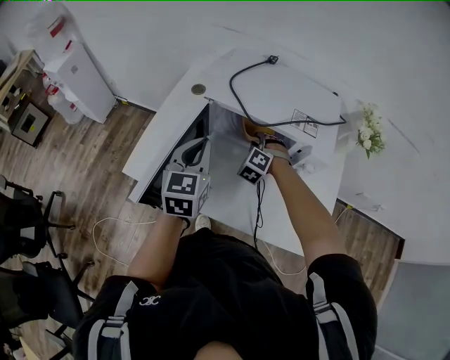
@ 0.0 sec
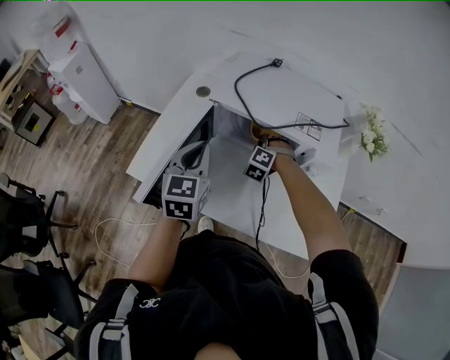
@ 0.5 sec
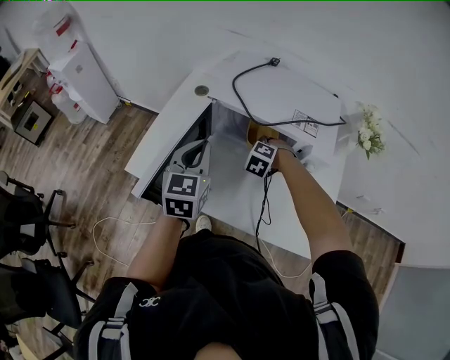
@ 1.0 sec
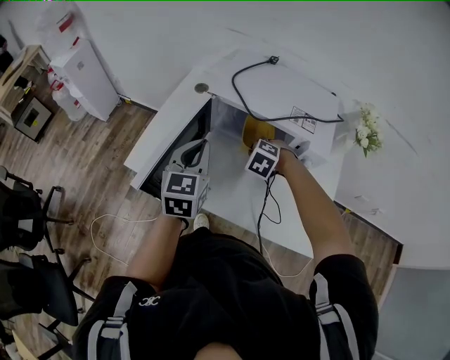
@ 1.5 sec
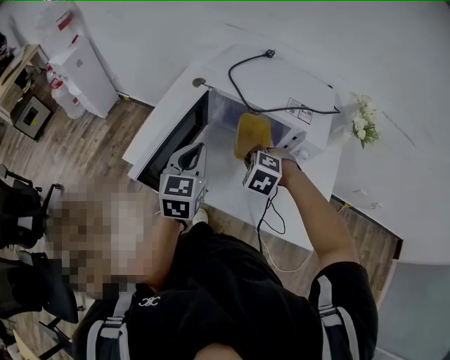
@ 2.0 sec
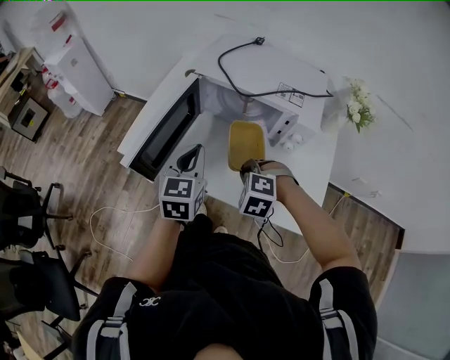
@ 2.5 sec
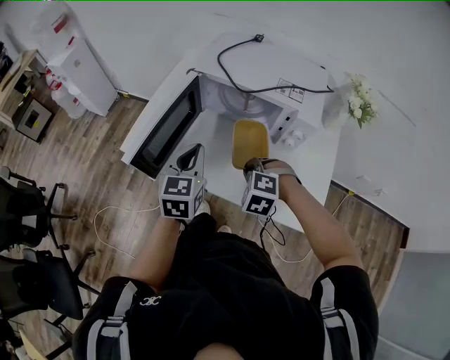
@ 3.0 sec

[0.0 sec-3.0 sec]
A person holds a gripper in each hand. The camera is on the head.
0.0 sec to 1.5 sec: The right gripper travels backward by roughly 10 cm, rotates about 20 degrees, and closes its fingers.
1.5 sec to 3.0 sec: The left gripper is displaced backward by some 10 cm; the right gripper heads backward, covering about 15 cm.

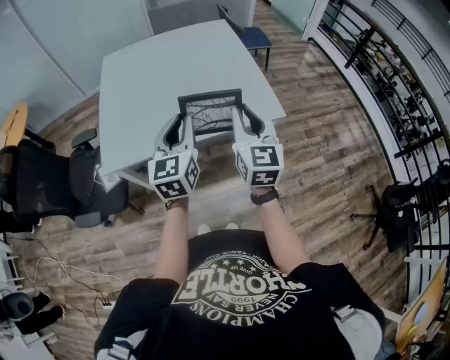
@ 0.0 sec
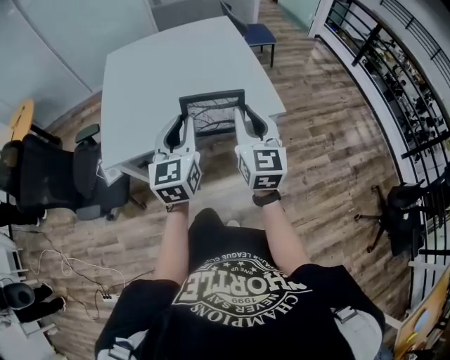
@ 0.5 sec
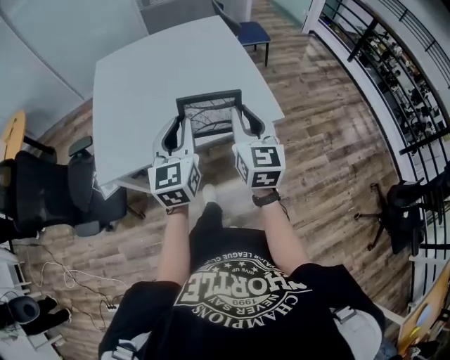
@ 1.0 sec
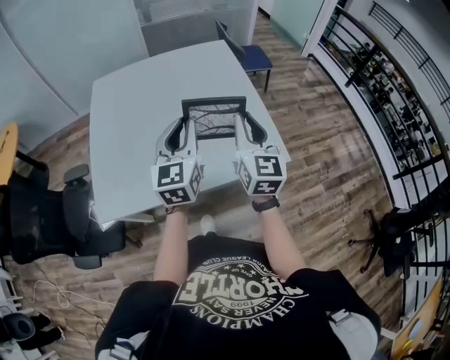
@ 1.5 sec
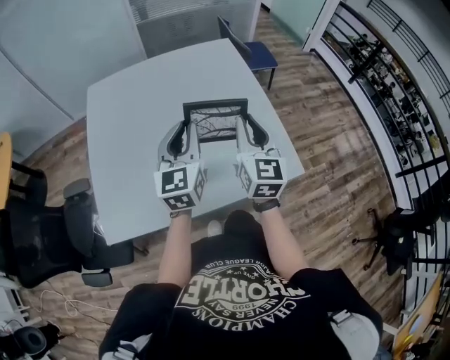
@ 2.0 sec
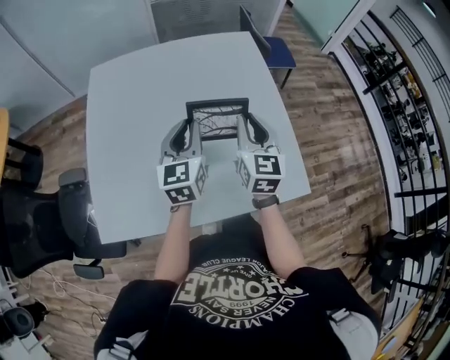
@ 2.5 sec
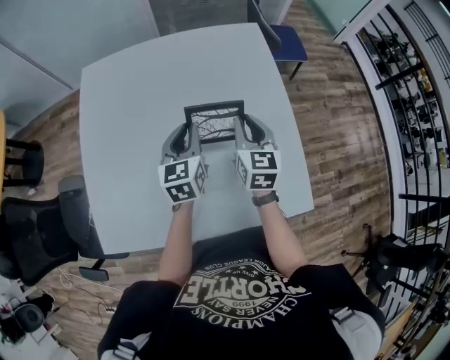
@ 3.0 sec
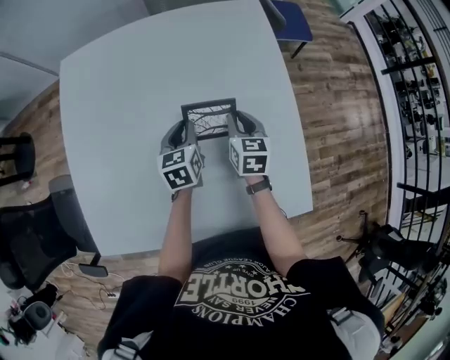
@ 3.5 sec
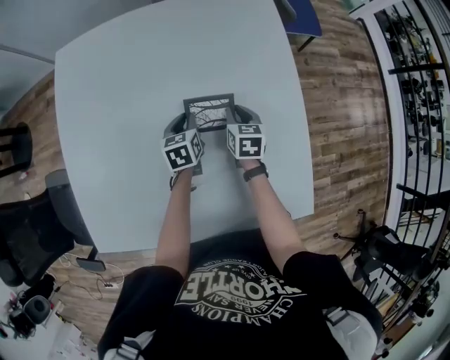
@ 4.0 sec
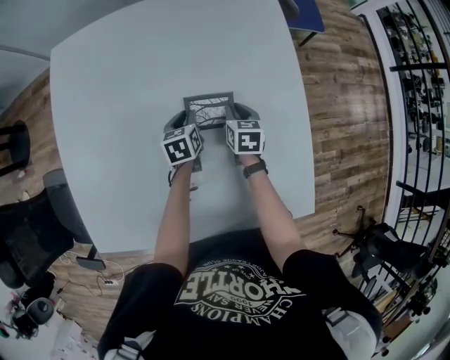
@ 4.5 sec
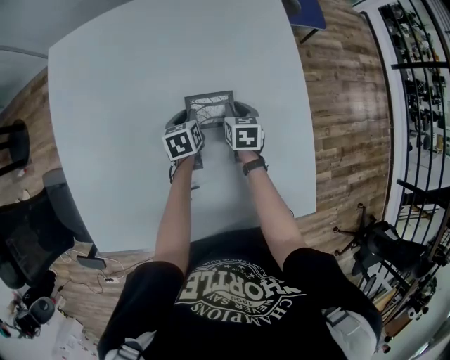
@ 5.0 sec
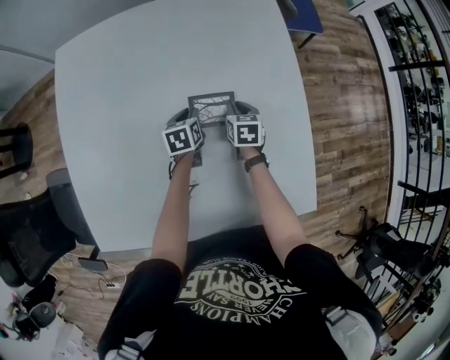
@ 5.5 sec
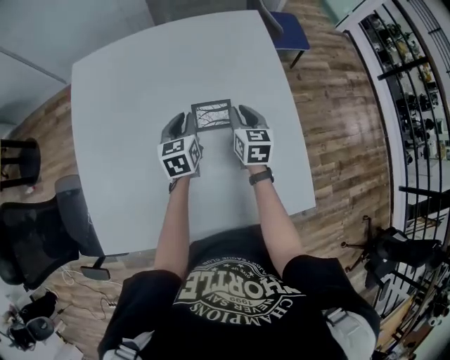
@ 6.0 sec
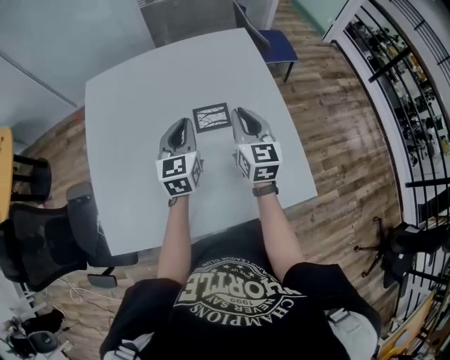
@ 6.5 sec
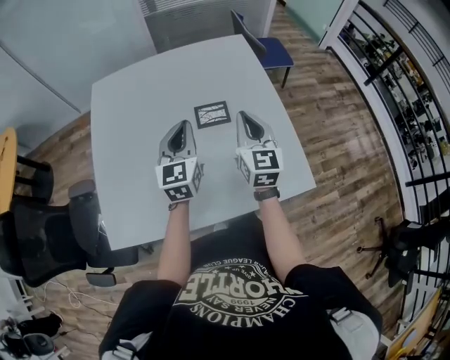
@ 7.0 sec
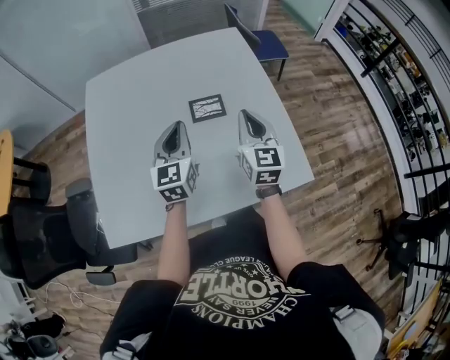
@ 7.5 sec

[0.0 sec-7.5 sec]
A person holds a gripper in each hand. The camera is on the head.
0.0 sec to 2.0 sec: Both grippers move forward, about 35 cm.
2.0 sec to 4.0 sec: The grippers both shift downward and forward by approximately 50 cm. The right gripper angles its fingers downward, by some 40 degrees; the left gripper points its fingers roughly 40 degrees further downward.
4.0 sec to 5.5 sec: The grippers stay close to where they were, moving slightly.
5.5 sec to 7.5 sec: Both grippers travel together upward and backward, roughly 40 cm. The left gripper tips its fingers upward by roughly 40 degrees. Meanwhile the right gripper tips its fingers upward by roughly 40 degrees.

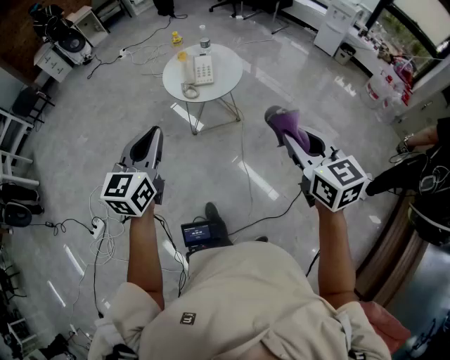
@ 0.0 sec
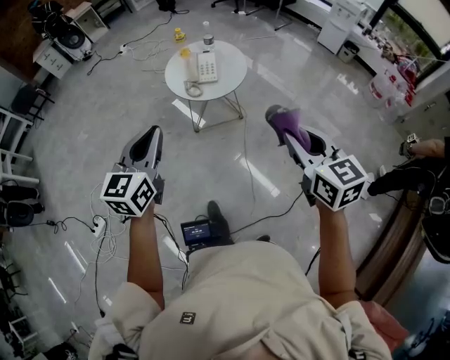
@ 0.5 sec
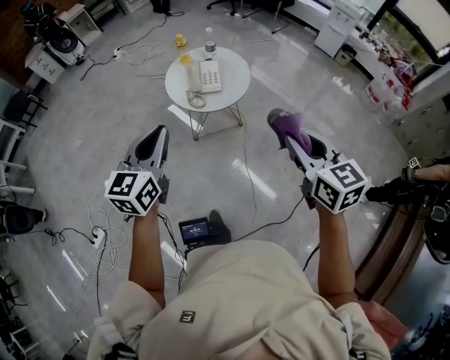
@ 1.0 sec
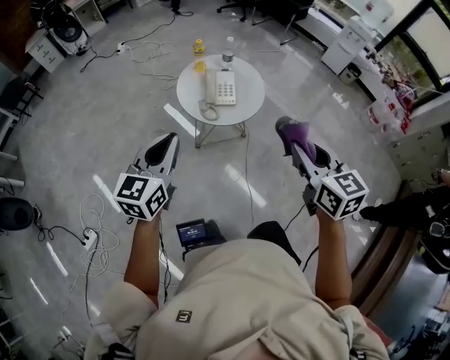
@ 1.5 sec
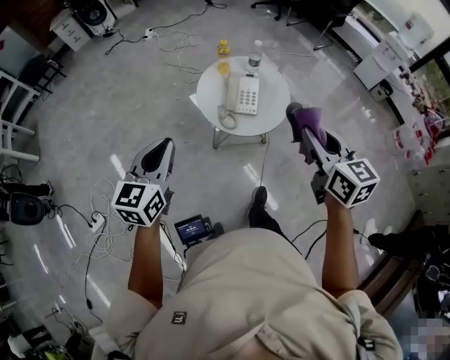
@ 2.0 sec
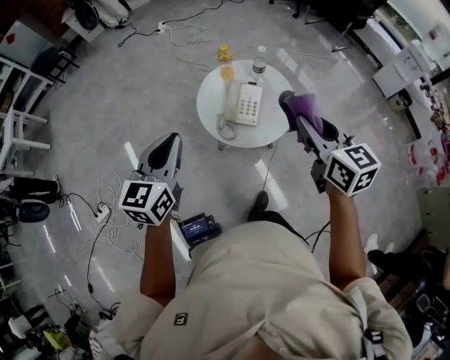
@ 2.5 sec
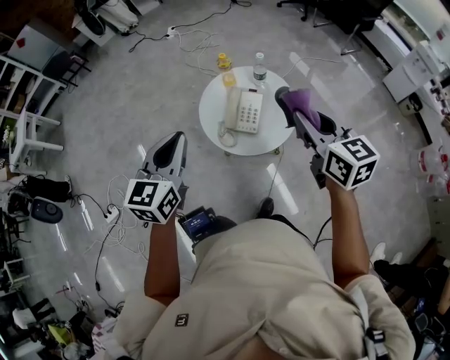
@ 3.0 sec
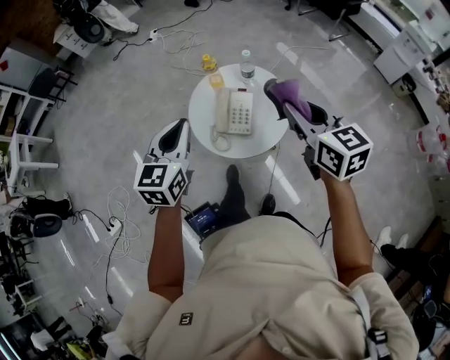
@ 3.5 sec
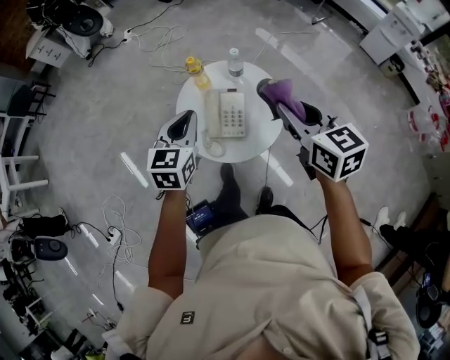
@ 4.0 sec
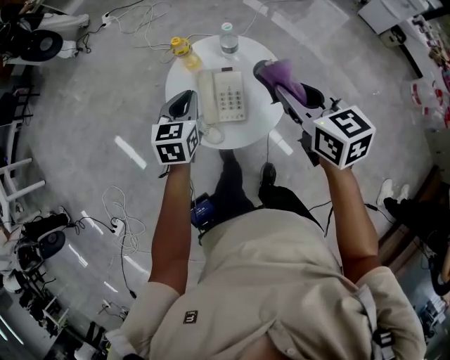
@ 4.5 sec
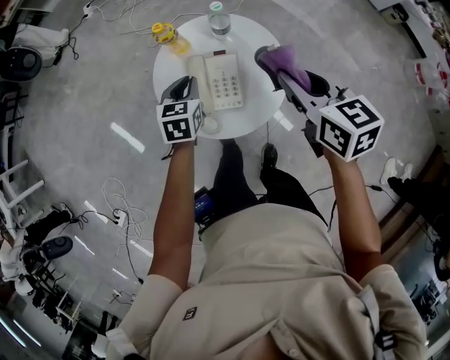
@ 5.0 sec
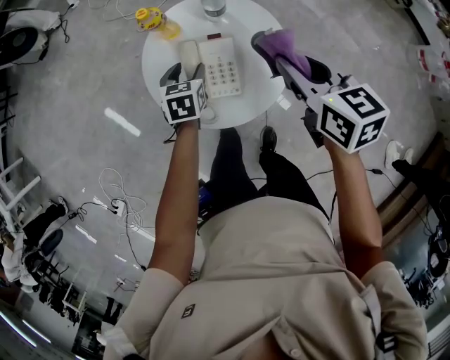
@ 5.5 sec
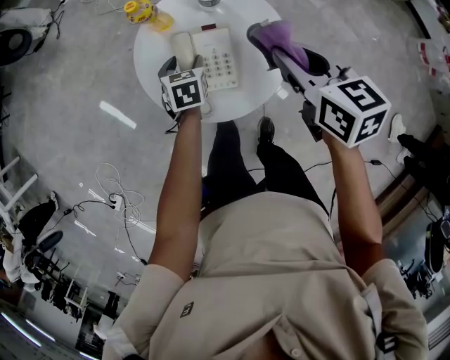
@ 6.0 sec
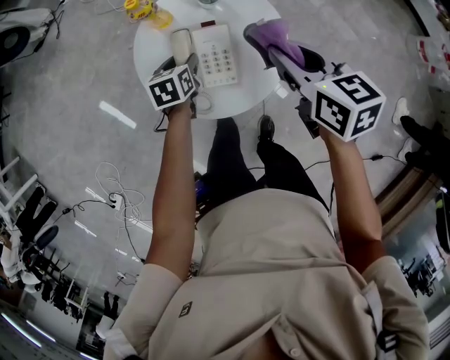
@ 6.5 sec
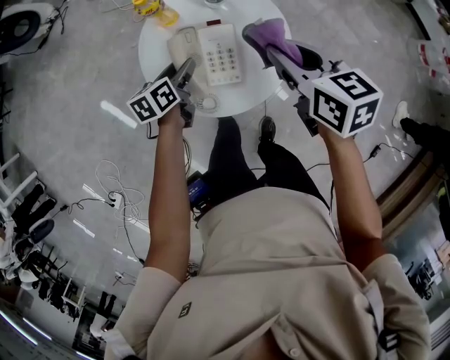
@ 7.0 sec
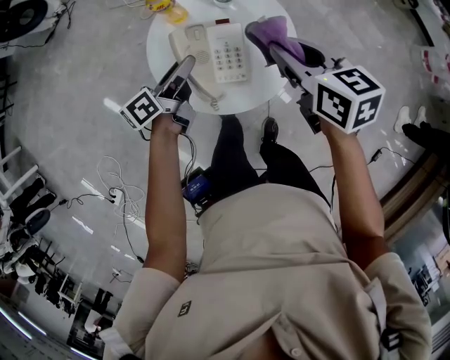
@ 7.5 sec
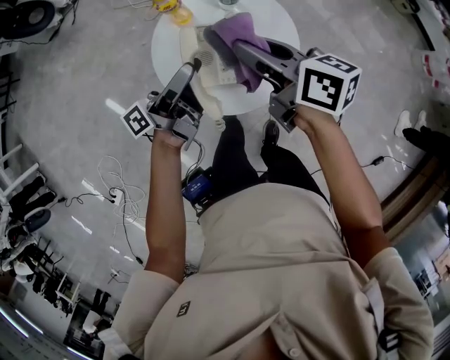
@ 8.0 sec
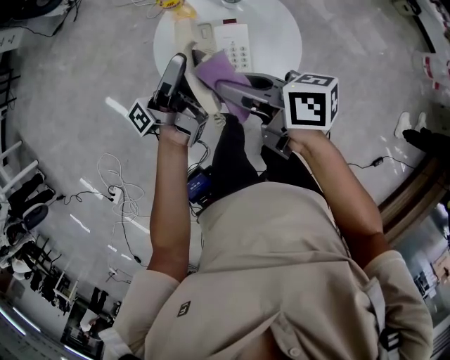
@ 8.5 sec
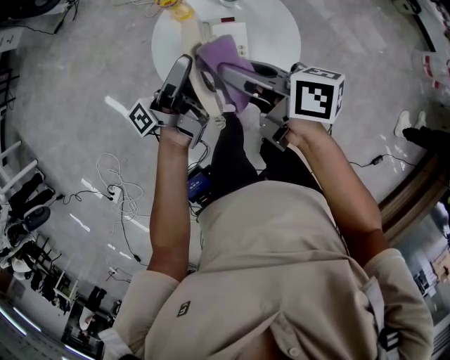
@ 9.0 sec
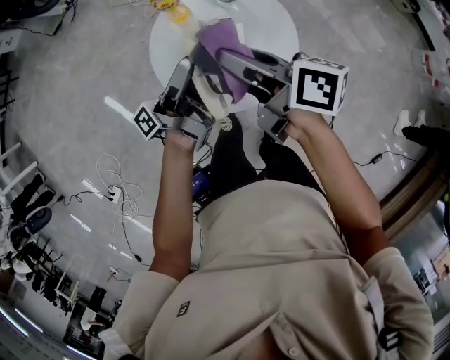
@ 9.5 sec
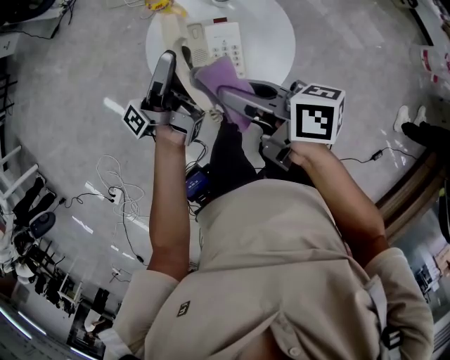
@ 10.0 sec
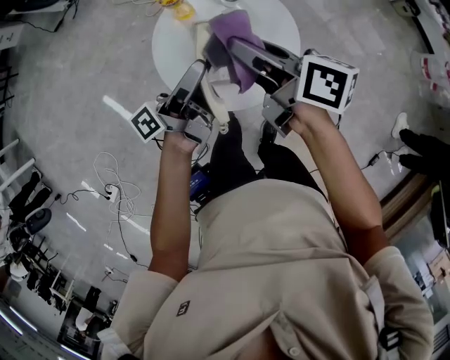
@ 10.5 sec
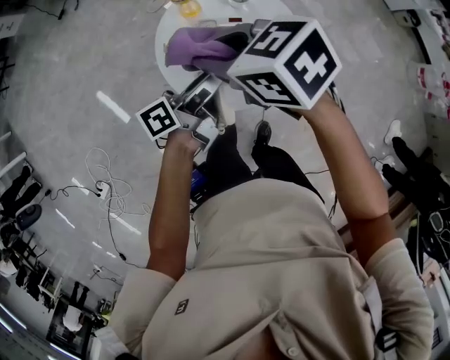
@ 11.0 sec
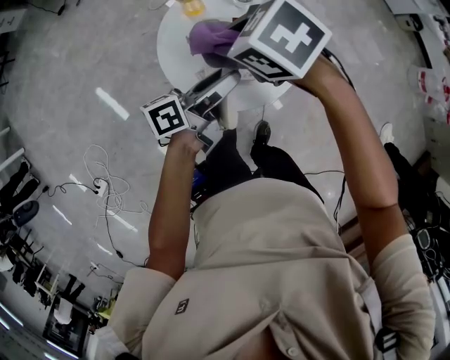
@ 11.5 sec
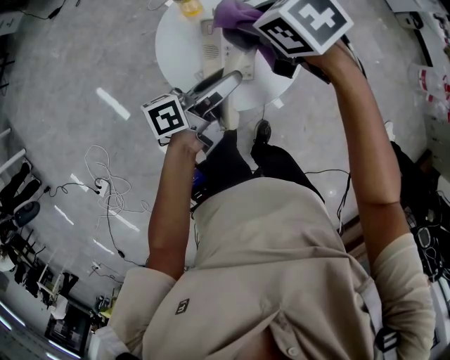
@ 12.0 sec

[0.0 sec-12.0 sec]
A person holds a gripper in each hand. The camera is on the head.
0.0 sec to 2.0 sec: The left gripper goes some 25 cm forward and to the left. The right gripper travels forward by approximately 30 cm.
2.0 sec to 4.0 sec: The right gripper travels forward by about 25 cm; the left gripper is displaced forward and to the right by approximately 35 cm.
4.0 sec to 6.0 sec: The left gripper moves downward, about 30 cm, swivels about 30 degrees, and opens. Meanwhile the right gripper shifts about 15 cm downward.
6.0 sec to 8.0 sec: The left gripper moves upward, approximately 20 cm, and tips its fingers upward by roughly 70 degrees; the right gripper heads to the left, covering some 10 cm, and swivels roughly 30 degrees.
8.0 sec to 10.0 sec: The right gripper swings forward and backward, about 10 cm each way, with 2 reversals.
10.0 sec to 12.0 sec: The left gripper shifts by about 10 cm, and turns by approximately 40 degrees, while the right gripper shifts by roughly 10 cm, and tips its fingers downward by some 50 degrees.

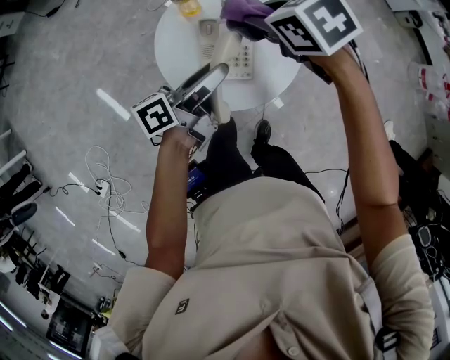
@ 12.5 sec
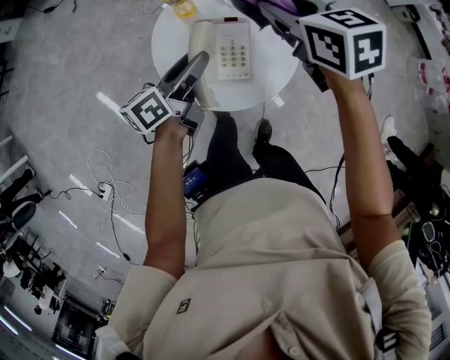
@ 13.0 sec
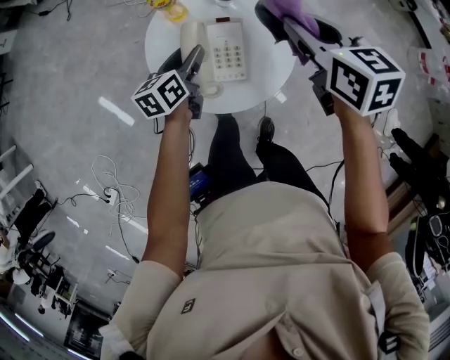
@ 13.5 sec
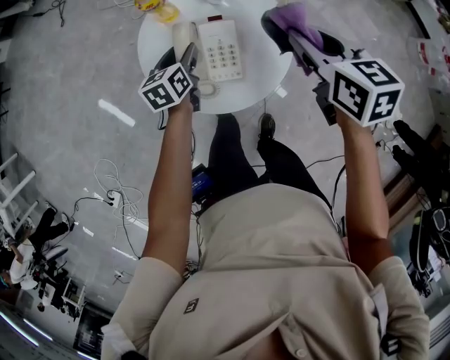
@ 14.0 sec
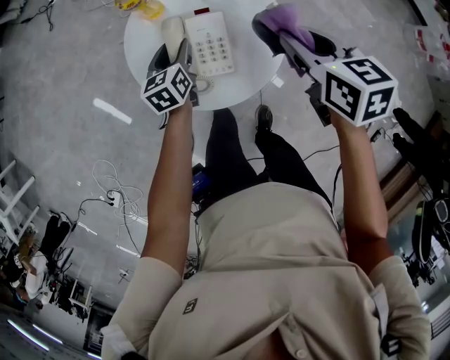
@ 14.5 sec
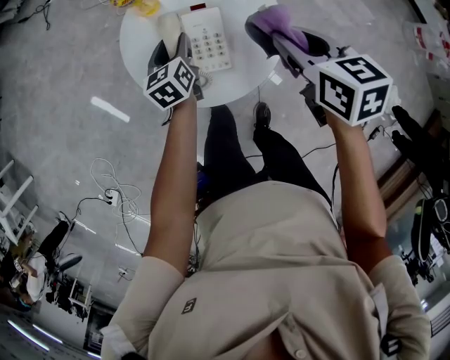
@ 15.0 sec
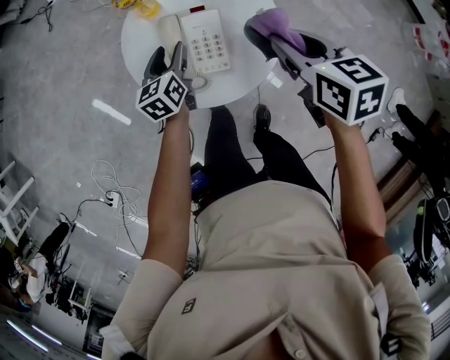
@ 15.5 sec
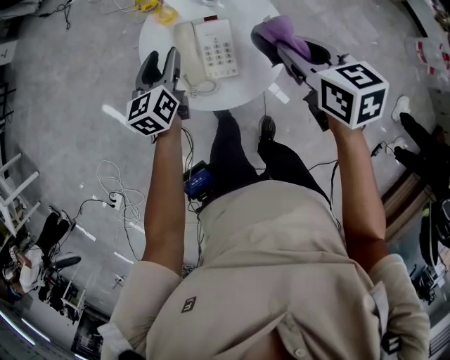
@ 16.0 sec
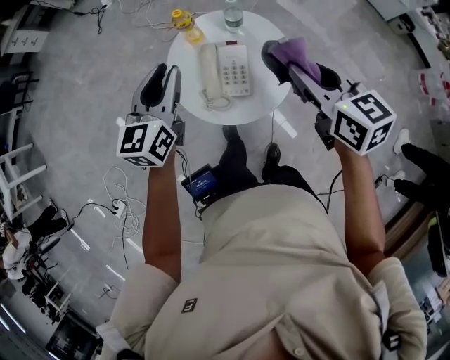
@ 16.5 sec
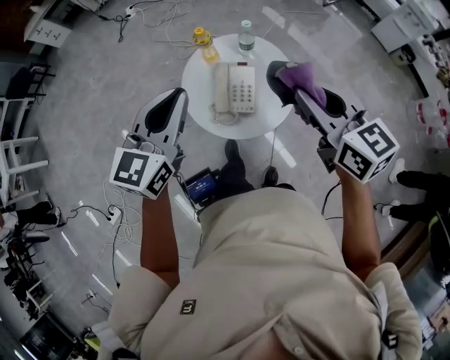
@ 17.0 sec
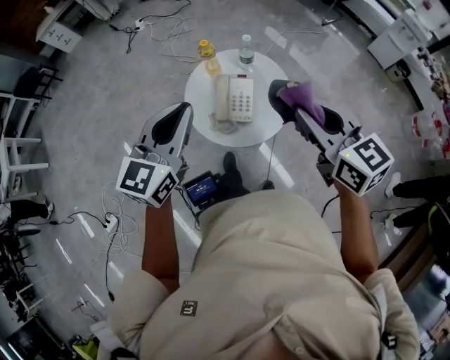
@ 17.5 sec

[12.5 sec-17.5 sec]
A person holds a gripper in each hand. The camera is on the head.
12.5 sec to 15.0 sec: The left gripper moves downward and forward, approximately 20 cm, and tilts its fingers about 30 degrees downward; the right gripper is displaced to the right and backward by approximately 15 cm, and swivels approximately 40 degrees.
15.0 sec to 17.5 sec: The left gripper shifts some 50 cm upward and backward, rotates some 40 degrees, and closes up. The right gripper heads upward and backward, covering about 25 cm, and turns by approximately 30 degrees.
